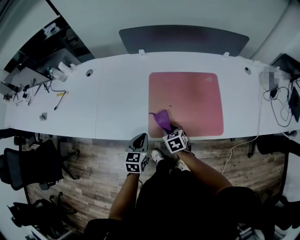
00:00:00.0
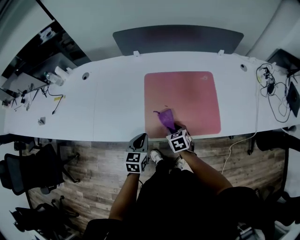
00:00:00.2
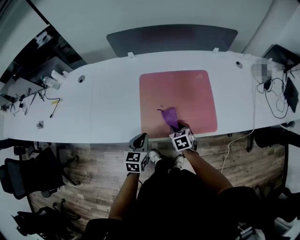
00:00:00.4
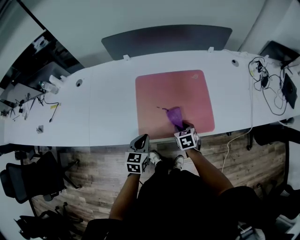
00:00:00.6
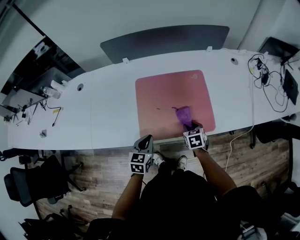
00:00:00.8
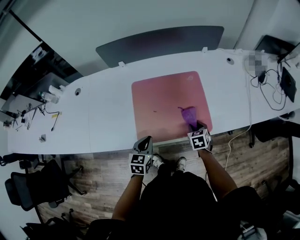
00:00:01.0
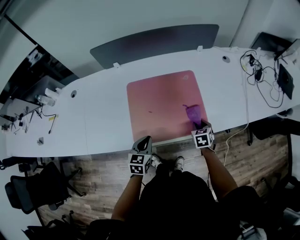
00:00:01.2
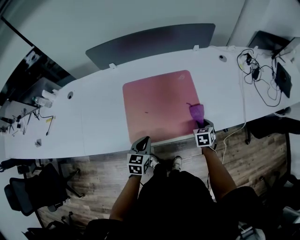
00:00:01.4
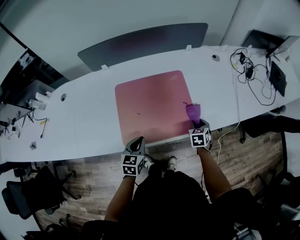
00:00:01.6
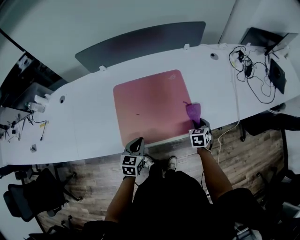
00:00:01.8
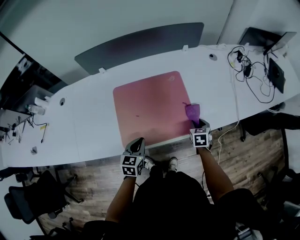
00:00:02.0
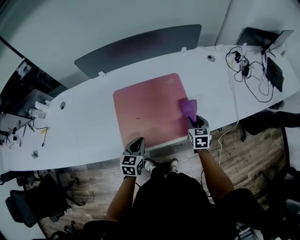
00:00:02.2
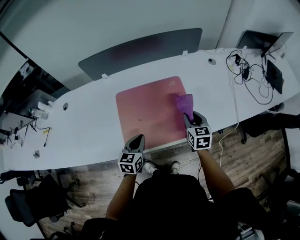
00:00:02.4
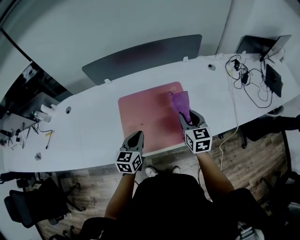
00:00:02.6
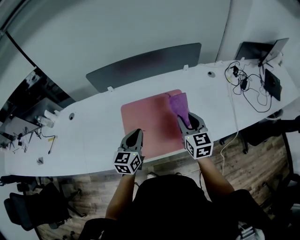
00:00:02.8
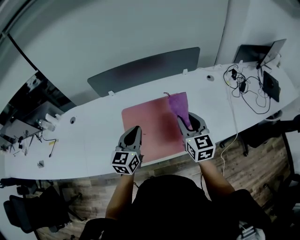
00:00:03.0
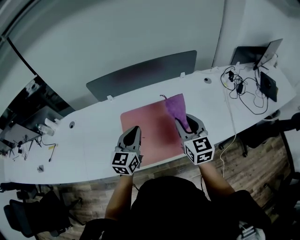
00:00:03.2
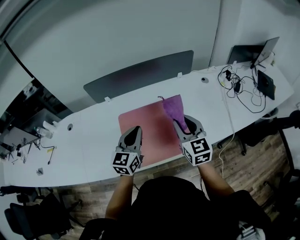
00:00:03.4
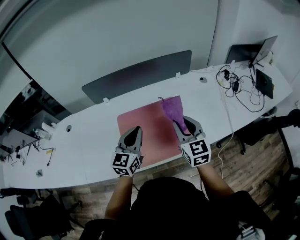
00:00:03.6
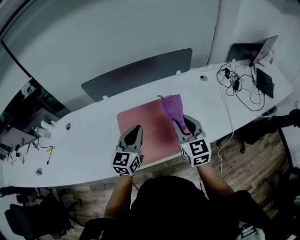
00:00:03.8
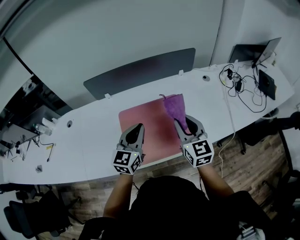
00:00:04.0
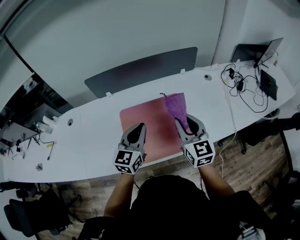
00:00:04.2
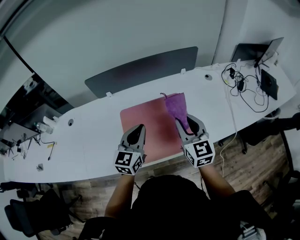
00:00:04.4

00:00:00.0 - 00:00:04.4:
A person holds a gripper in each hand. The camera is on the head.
00:00:00.0 - 00:00:01.4: The right gripper changes place by approximately 30 cm, and changes its angle by about 30 degrees. Meanwhile the left gripper ends up about 15 cm from where it was.
00:00:01.4 - 00:00:03.0: The right gripper goes about 30 cm upward, and tips its fingers upward by approximately 40 degrees. The left gripper travels upward and forward by approximately 20 cm, and changes its angle by some 30 degrees.
00:00:03.0 - 00:00:04.4: There are only small adjustments of the grippers.

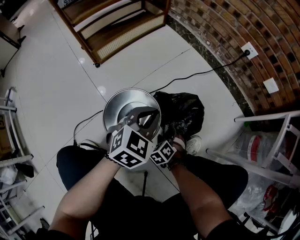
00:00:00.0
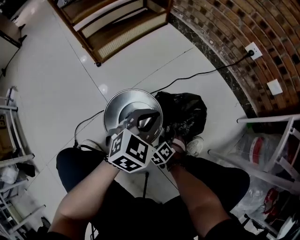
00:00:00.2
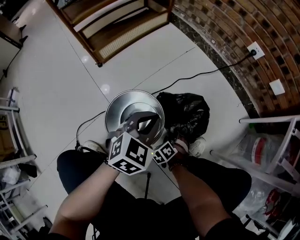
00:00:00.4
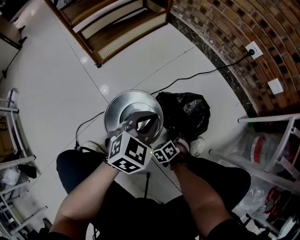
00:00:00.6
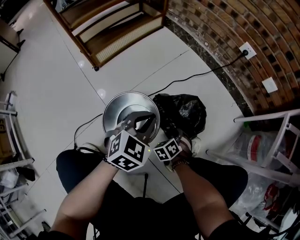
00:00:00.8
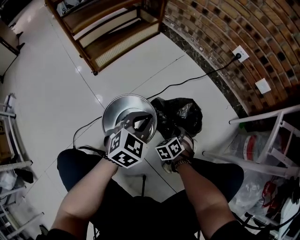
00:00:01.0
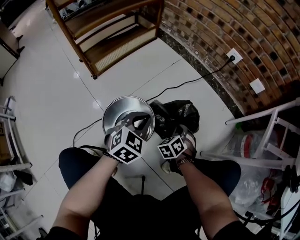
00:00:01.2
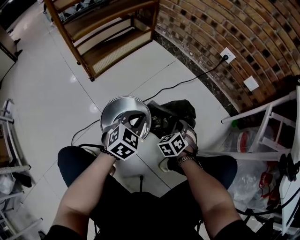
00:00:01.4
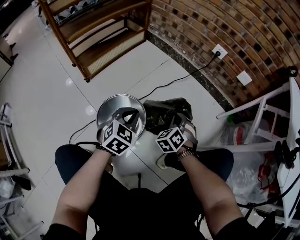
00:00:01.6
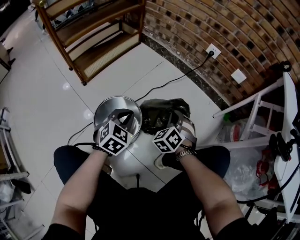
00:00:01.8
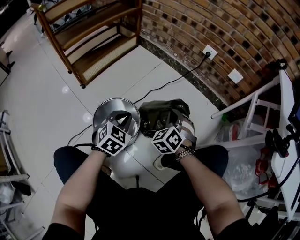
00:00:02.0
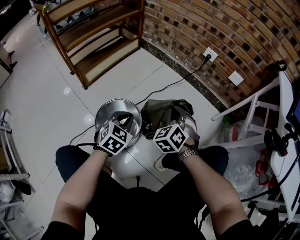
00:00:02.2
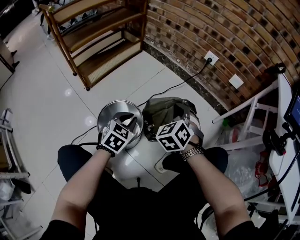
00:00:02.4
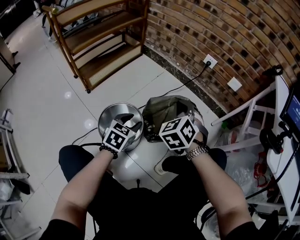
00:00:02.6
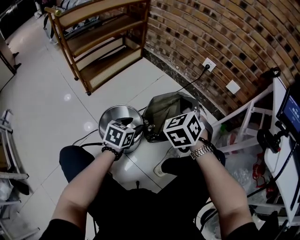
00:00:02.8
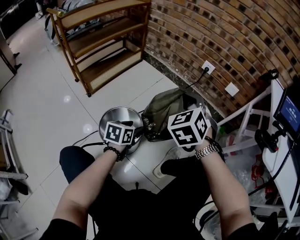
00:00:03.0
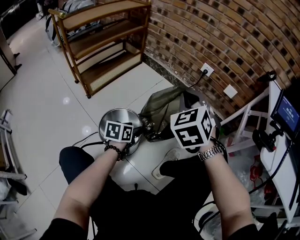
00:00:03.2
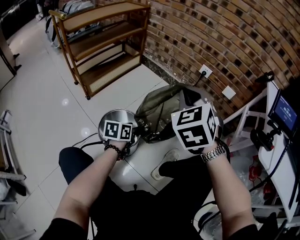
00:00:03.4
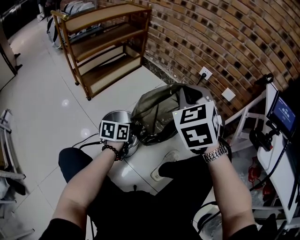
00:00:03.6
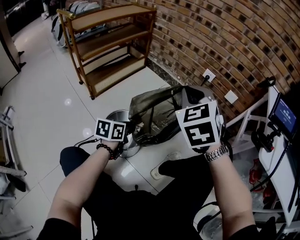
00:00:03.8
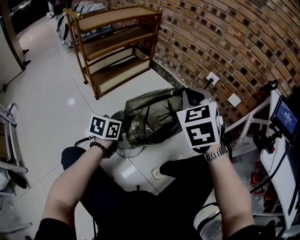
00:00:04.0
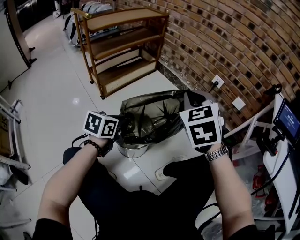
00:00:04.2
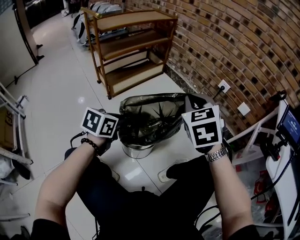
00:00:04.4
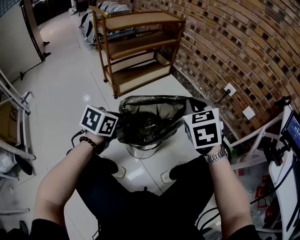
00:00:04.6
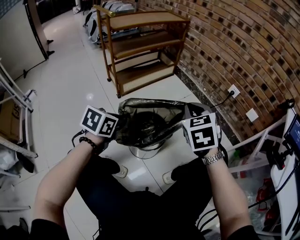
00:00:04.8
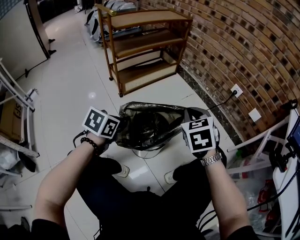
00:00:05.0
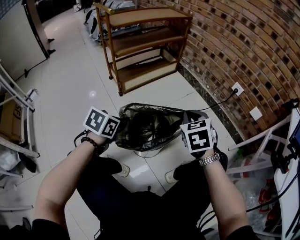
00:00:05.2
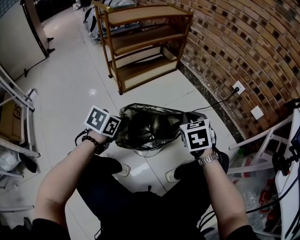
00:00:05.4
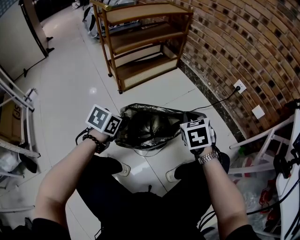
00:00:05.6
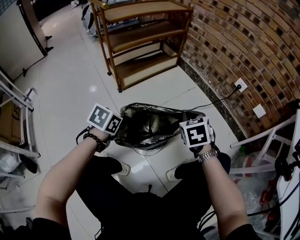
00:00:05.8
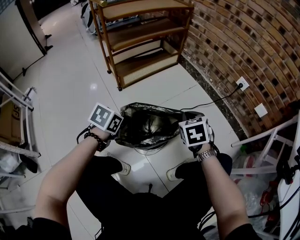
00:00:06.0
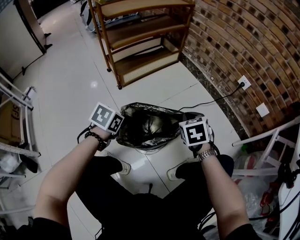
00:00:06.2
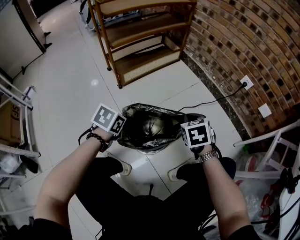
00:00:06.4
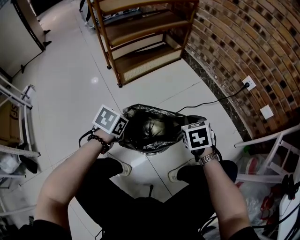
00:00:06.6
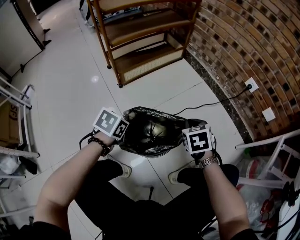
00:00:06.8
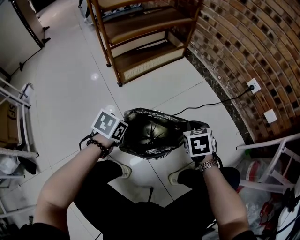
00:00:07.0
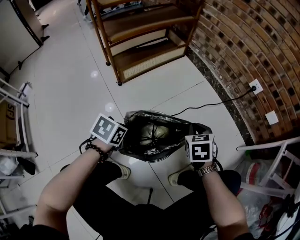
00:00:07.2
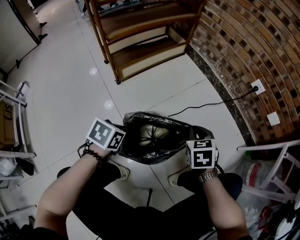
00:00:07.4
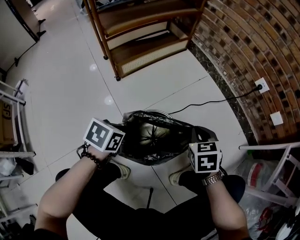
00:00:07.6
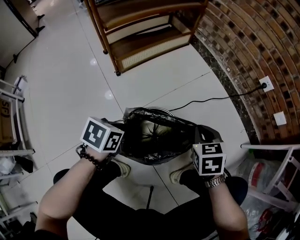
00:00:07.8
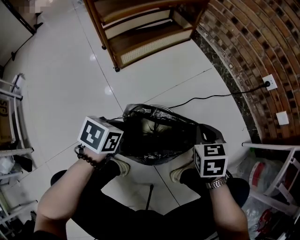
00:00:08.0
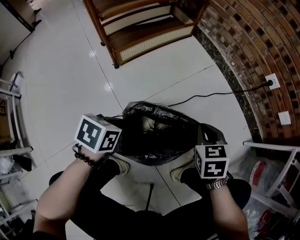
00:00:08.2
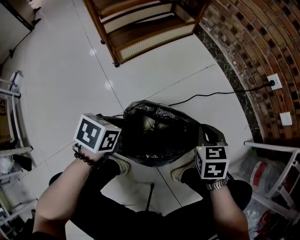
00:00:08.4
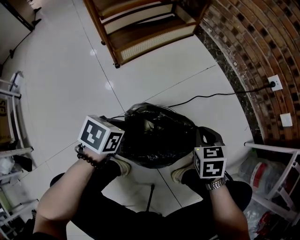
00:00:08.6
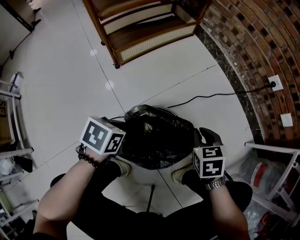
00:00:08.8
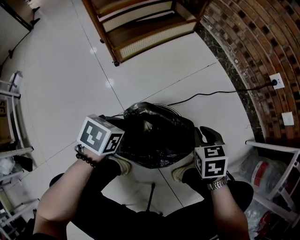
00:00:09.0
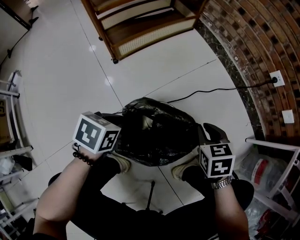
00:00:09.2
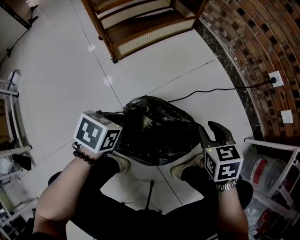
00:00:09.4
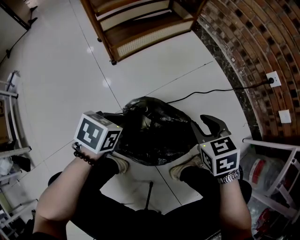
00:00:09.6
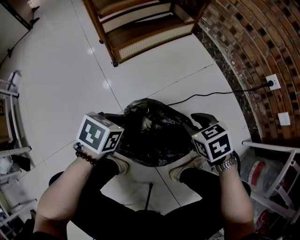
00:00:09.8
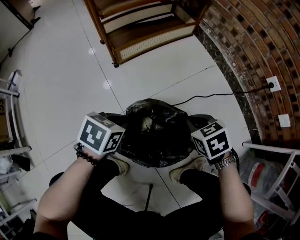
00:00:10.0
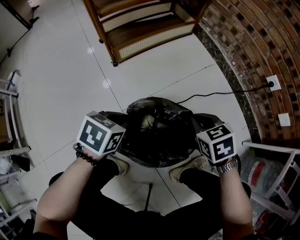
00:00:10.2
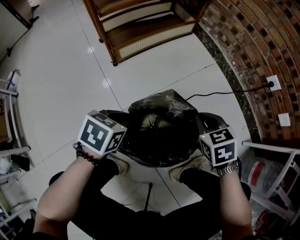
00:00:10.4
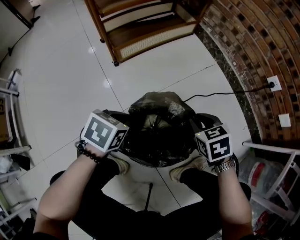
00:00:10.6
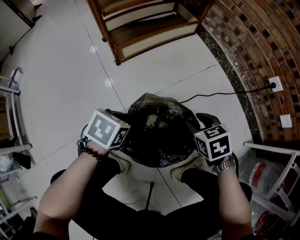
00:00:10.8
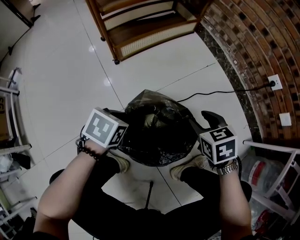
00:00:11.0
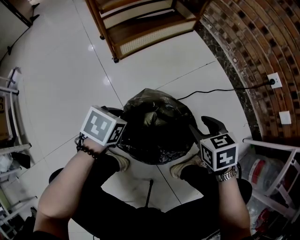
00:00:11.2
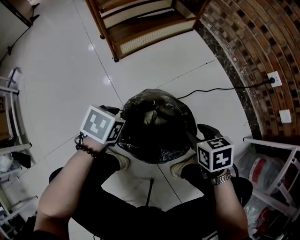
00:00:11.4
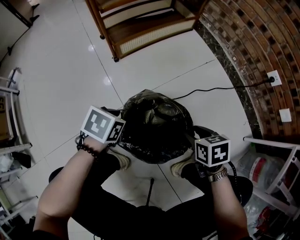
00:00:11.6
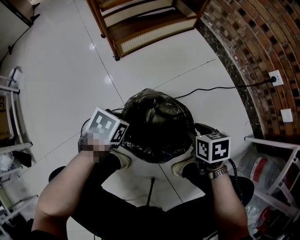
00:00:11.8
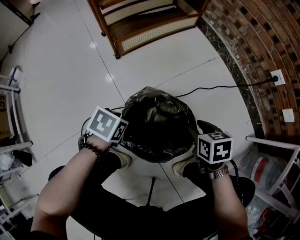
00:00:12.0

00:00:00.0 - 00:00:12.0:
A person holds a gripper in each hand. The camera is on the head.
00:00:00.0 - 00:00:01.6: The right gripper travels upward, forward and to the right by some 20 cm, turns by approximately 20 degrees, and closes up.
00:00:01.6 - 00:00:03.0: The left gripper twists approximately 40 degrees counterclockwise, seen from behind, and opens up. The right gripper shifts about 25 cm upward.
00:00:03.0 - 00:00:04.4: The left gripper shifts approximately 20 cm upward, to the left and backward, and closes up. Meanwhile the right gripper shifts roughly 10 cm to the left, upward and backward.
00:00:04.4 - 00:00:06.0: The right gripper heads downward, covering some 20 cm, and rotates some 20 degrees; the left gripper travels downward and to the left by some 10 cm.
00:00:06.0 - 00:00:07.6: The grippers both shift downward by approximately 5 cm.
00:00:07.6 - 00:00:09.0: The right gripper goes about 5 cm downward.
00:00:09.0 - 00:00:10.4: The right gripper moves roughly 5 cm.
00:00:10.4 - 00:00:12.0: The left gripper is displaced downward by about 5 cm, and opens its fingers; the right gripper heads downward and backward, covering some 10 cm, turns by roughly 20 degrees, and opens its fingers.

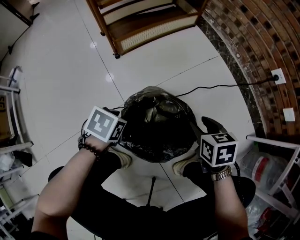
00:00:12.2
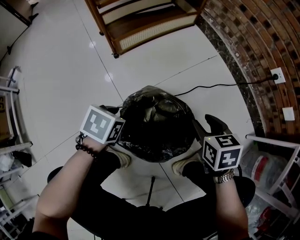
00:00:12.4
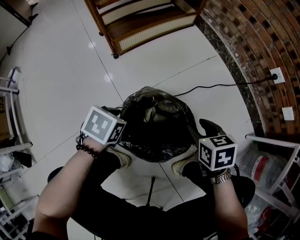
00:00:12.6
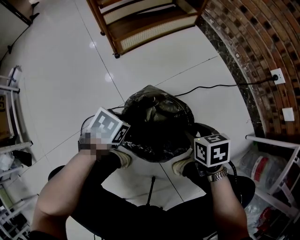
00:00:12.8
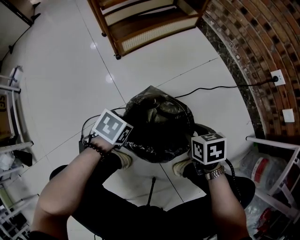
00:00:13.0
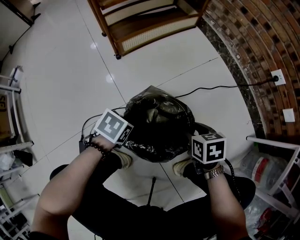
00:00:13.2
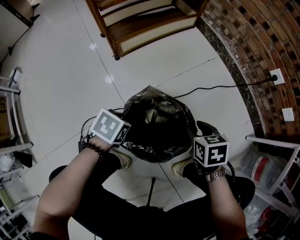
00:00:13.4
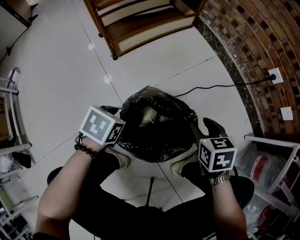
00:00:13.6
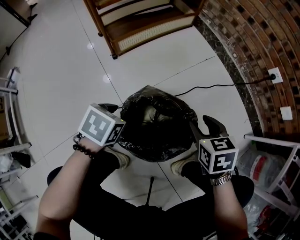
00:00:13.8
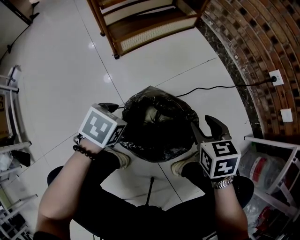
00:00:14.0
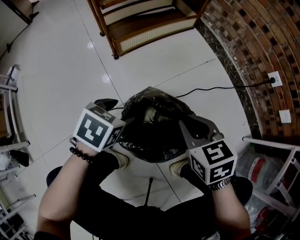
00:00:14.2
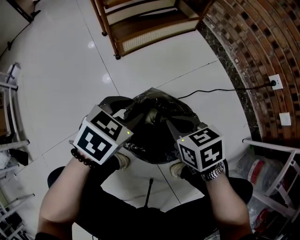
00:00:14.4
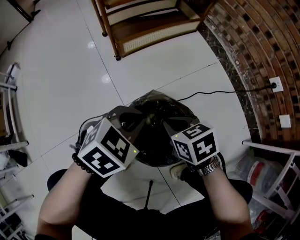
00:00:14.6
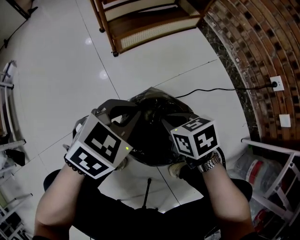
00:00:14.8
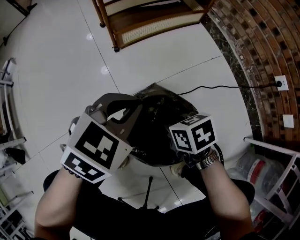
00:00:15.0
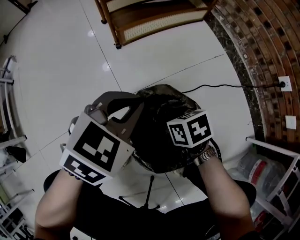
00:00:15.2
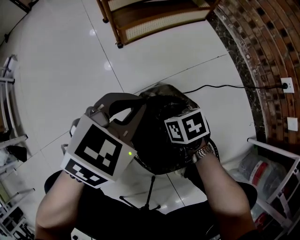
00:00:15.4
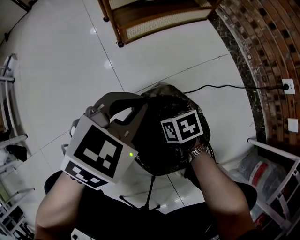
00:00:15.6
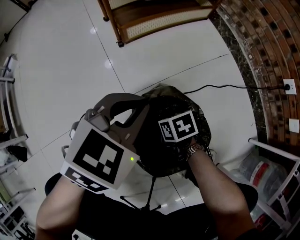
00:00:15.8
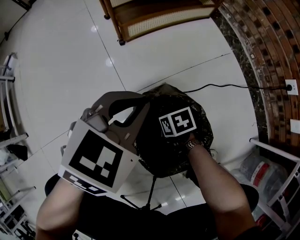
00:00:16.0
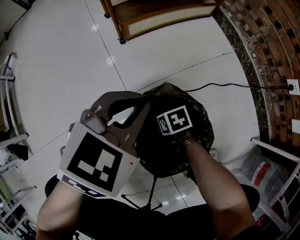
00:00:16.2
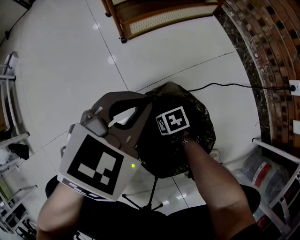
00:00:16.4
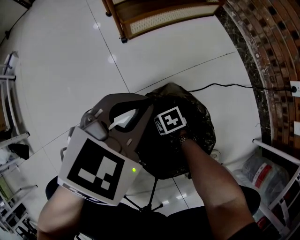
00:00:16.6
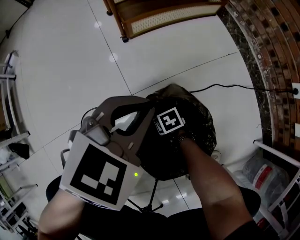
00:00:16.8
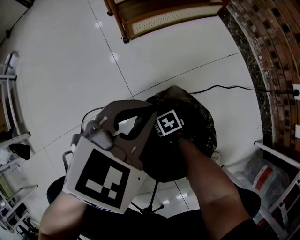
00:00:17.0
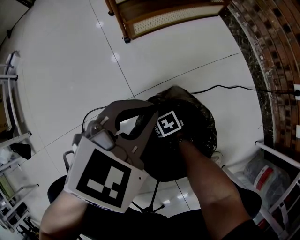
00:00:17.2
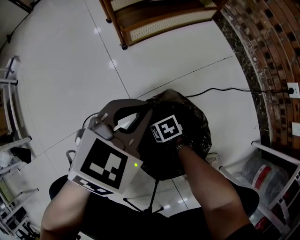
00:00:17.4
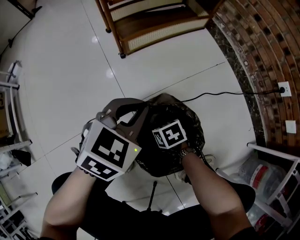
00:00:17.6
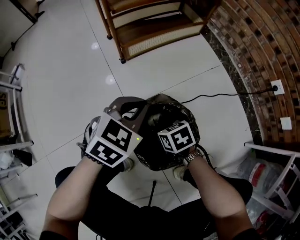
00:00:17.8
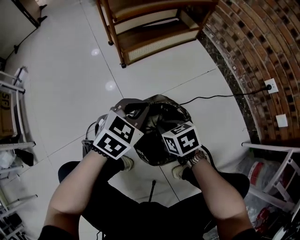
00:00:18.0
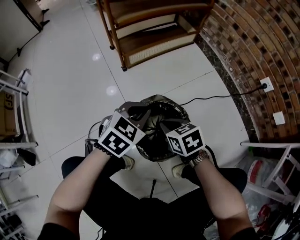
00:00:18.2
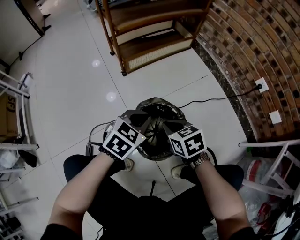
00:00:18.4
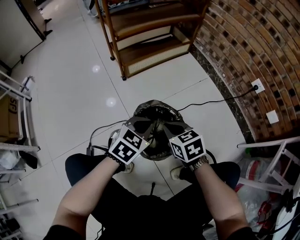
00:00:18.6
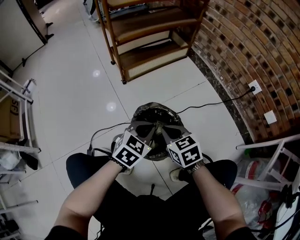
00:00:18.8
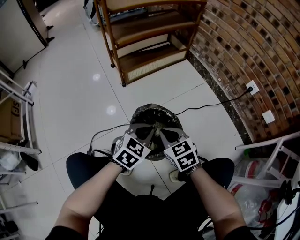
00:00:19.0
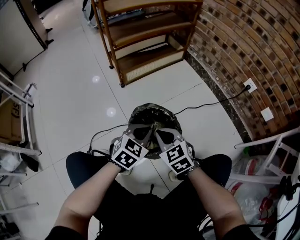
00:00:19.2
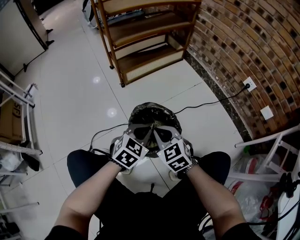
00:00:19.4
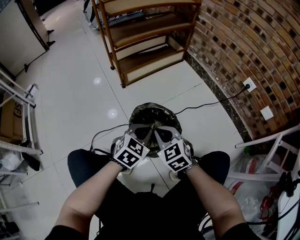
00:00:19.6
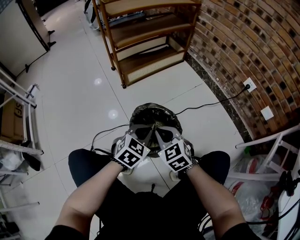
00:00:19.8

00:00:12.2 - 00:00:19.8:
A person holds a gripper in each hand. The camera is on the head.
00:00:12.2 - 00:00:13.8: The grippers stay close to where they were, moving slightly.
00:00:13.8 - 00:00:15.2: The right gripper shifts by about 15 cm, turns by some 30 degrees, and closes. The left gripper goes about 10 cm upward, swivels about 30 degrees, and closes up.
00:00:15.2 - 00:00:16.8: The right gripper shifts some 20 cm downward.
00:00:16.8 - 00:00:18.2: The right gripper is displaced upward by some 25 cm, and swivels approximately 30 degrees.
00:00:18.2 - 00:00:19.8: The left gripper shifts approximately 10 cm backward. Meanwhile the right gripper goes approximately 10 cm upward and backward, and rotates some 30 degrees.
